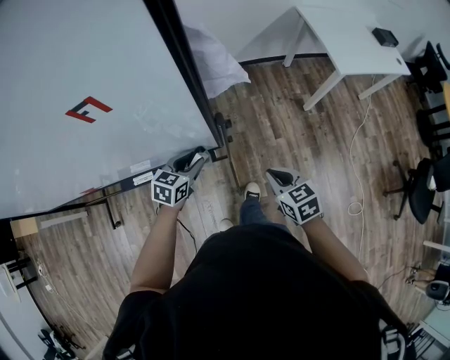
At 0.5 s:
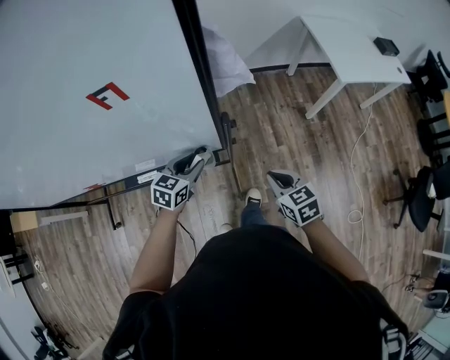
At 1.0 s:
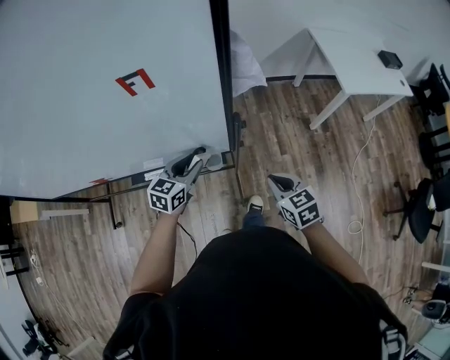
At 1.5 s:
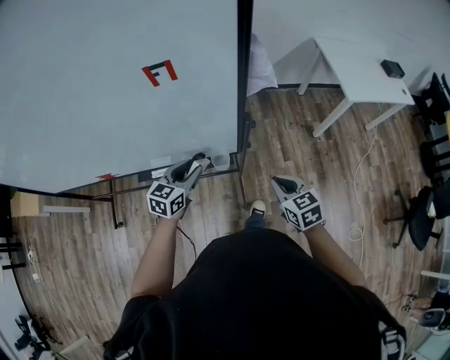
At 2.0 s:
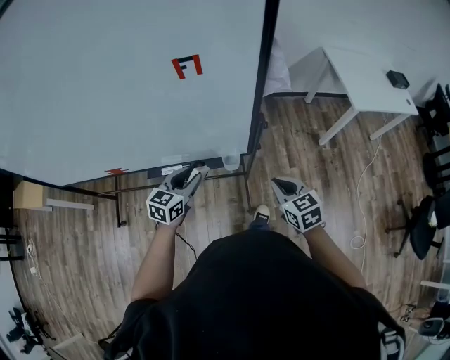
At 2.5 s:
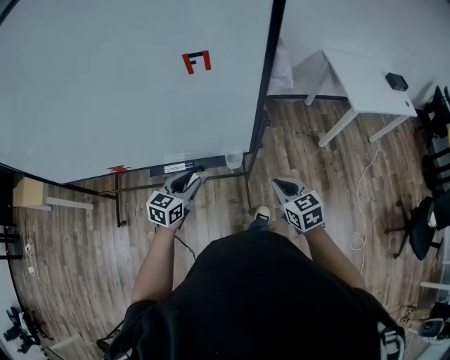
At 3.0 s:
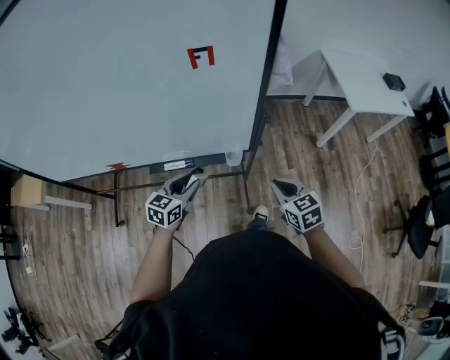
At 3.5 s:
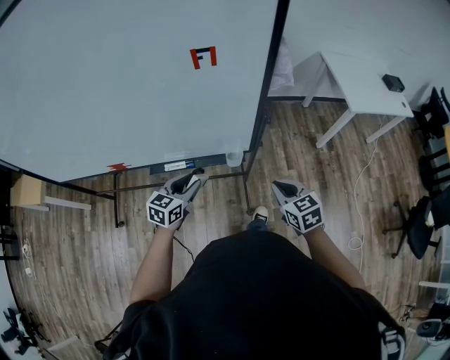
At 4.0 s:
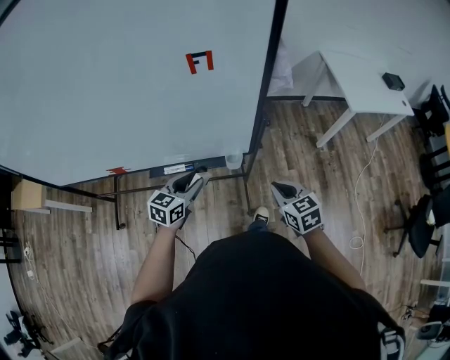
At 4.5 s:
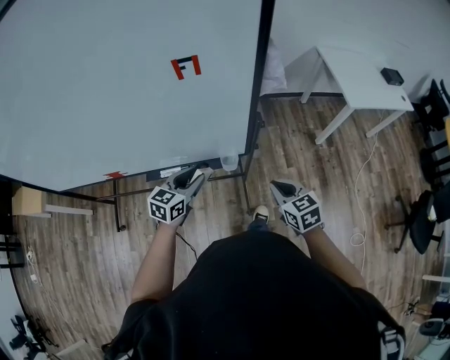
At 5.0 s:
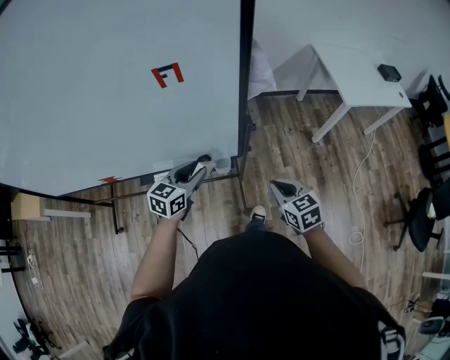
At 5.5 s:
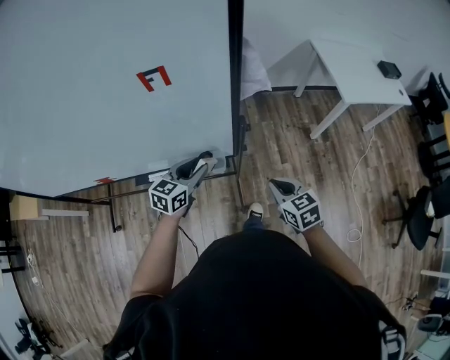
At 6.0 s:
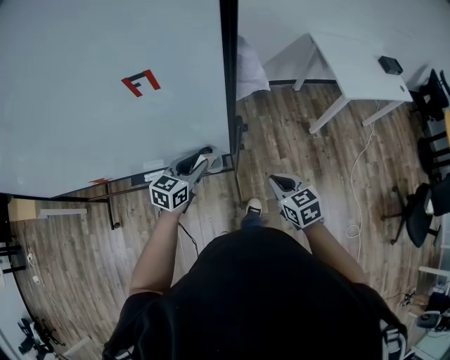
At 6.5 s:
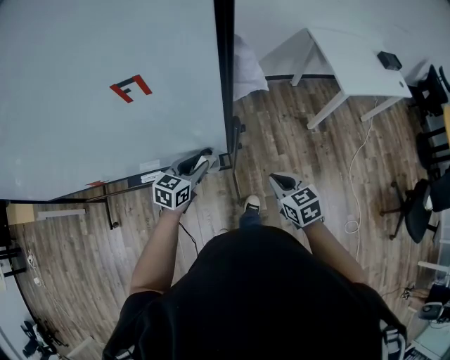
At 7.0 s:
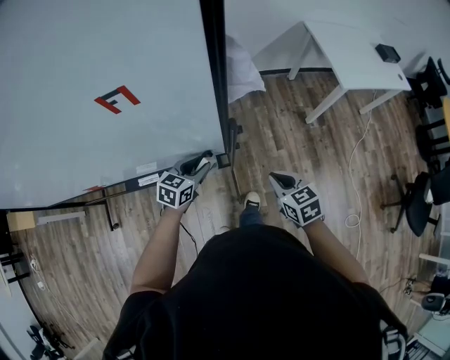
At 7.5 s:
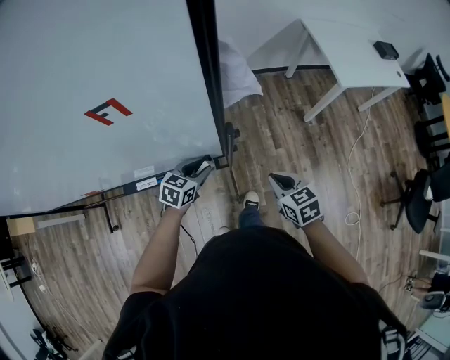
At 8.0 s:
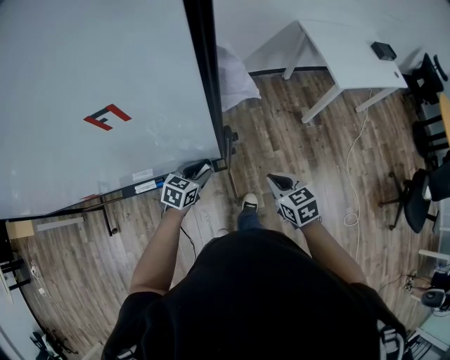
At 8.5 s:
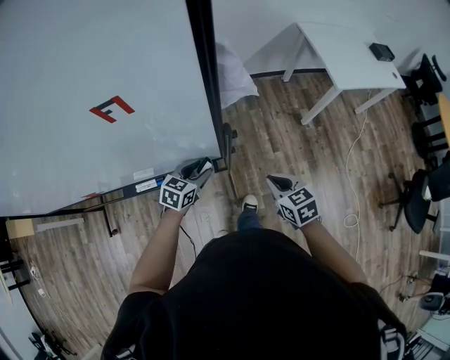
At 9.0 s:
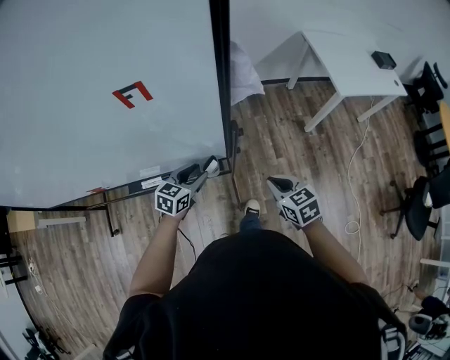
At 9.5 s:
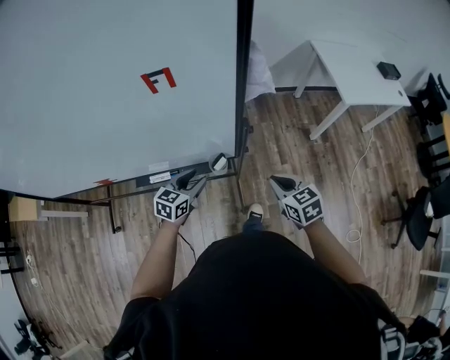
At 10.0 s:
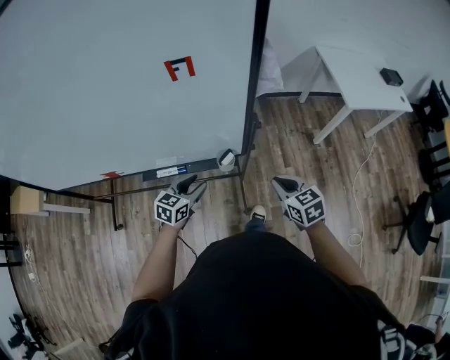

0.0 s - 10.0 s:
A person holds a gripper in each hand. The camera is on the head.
0.0 s - 2.0 s: The right gripper goes some 10 cm to the left and upward. Meanwhile the left gripper travels to the left, backward and upward by about 15 cm.
2.0 s - 4.0 s: The grippers stay close to where they were, moving slightly.
4.0 s - 6.0 s: The left gripper goes about 15 cm forward and to the right. Meanwhile the right gripper travels to the right and forward by some 10 cm.
6.0 s - 8.0 s: The left gripper shifts some 10 cm downward.
8.0 s - 10.0 s: The left gripper heads backward, to the left and upward, covering some 15 cm; the right gripper heads backward, covering about 5 cm.

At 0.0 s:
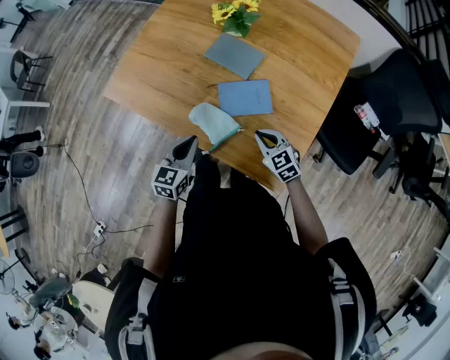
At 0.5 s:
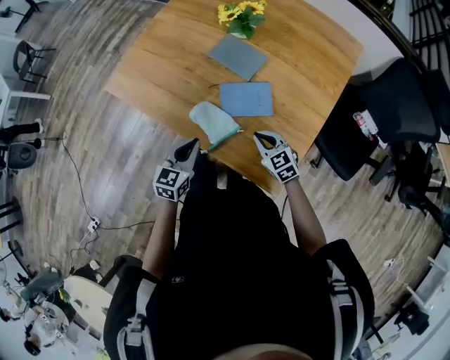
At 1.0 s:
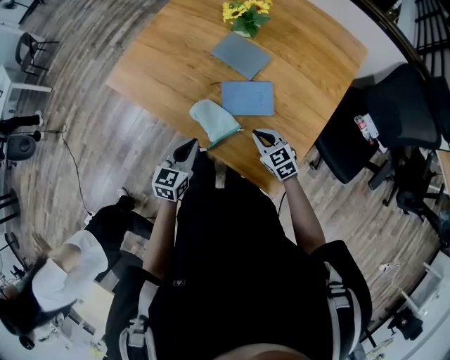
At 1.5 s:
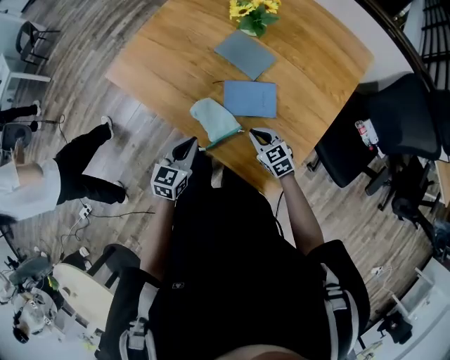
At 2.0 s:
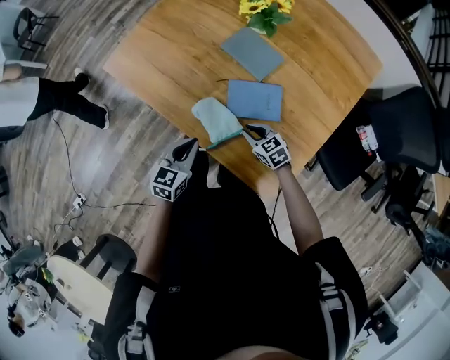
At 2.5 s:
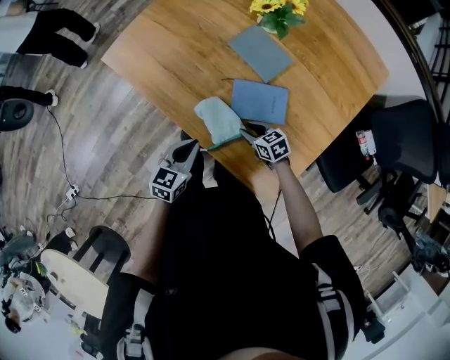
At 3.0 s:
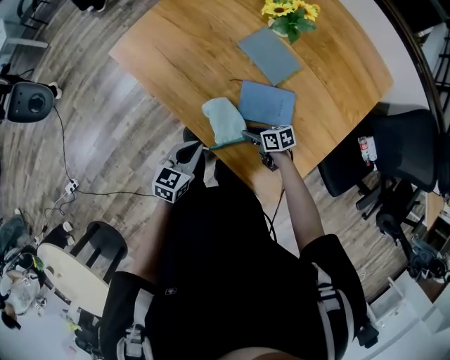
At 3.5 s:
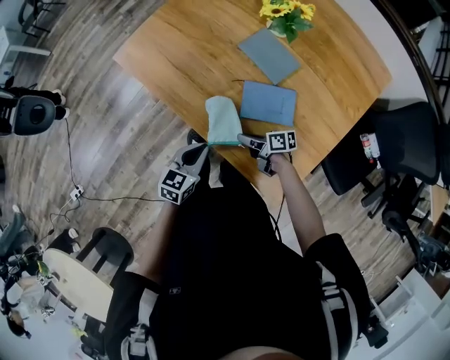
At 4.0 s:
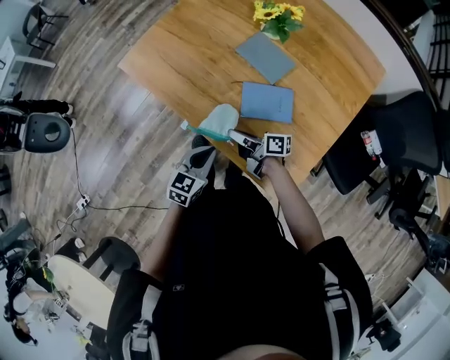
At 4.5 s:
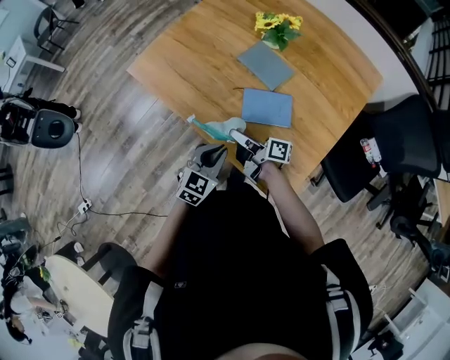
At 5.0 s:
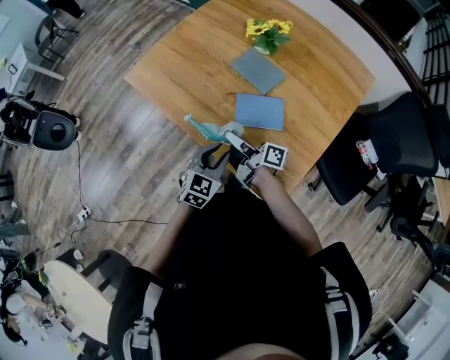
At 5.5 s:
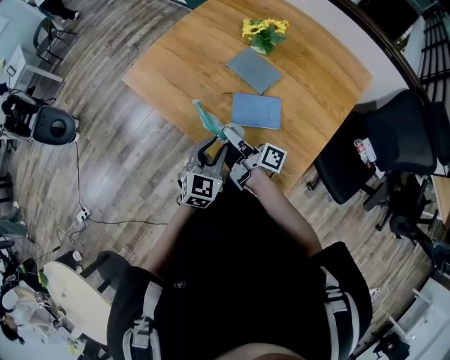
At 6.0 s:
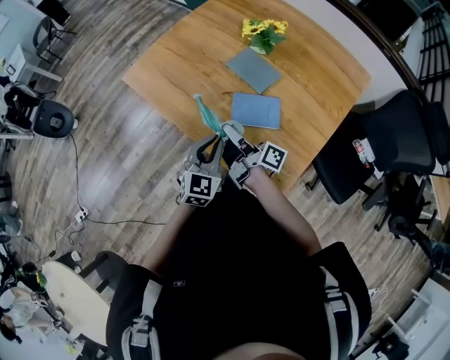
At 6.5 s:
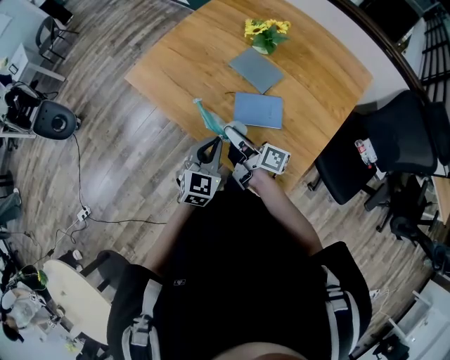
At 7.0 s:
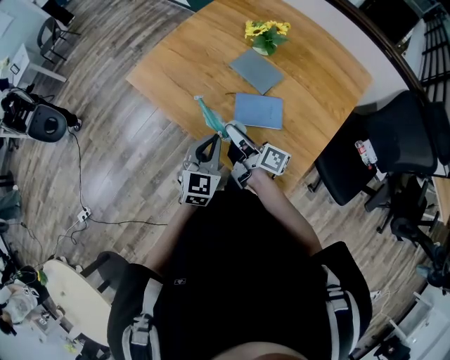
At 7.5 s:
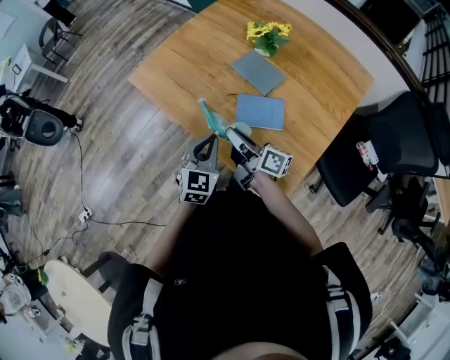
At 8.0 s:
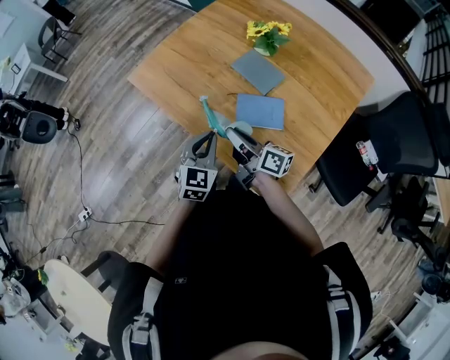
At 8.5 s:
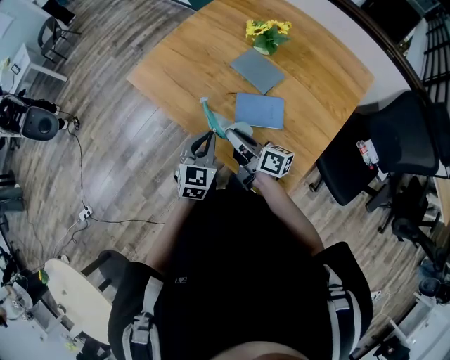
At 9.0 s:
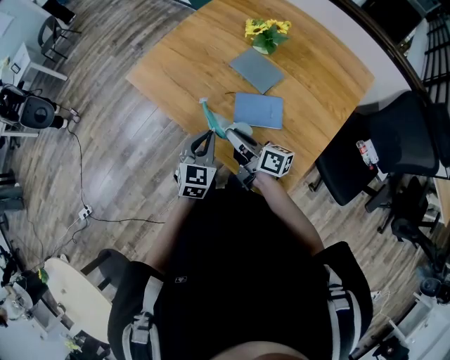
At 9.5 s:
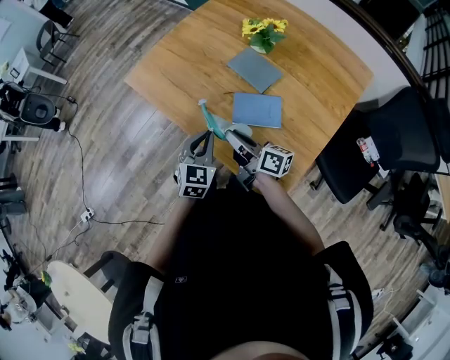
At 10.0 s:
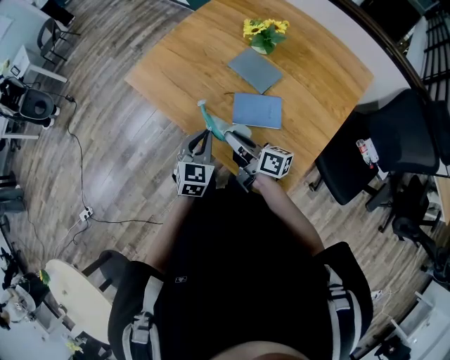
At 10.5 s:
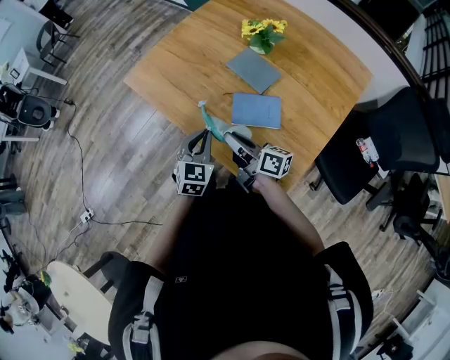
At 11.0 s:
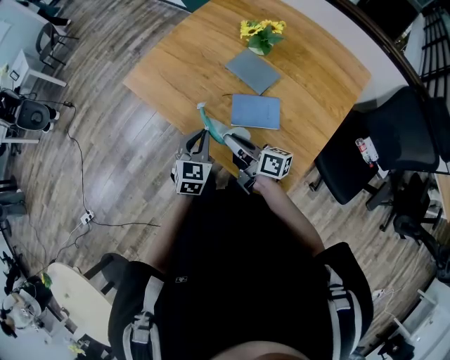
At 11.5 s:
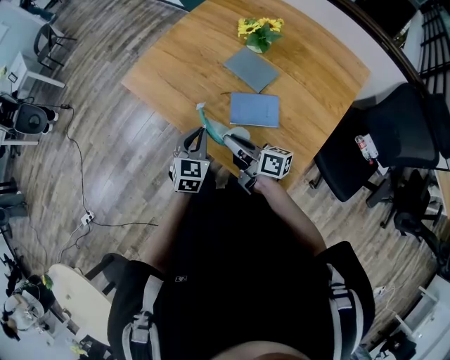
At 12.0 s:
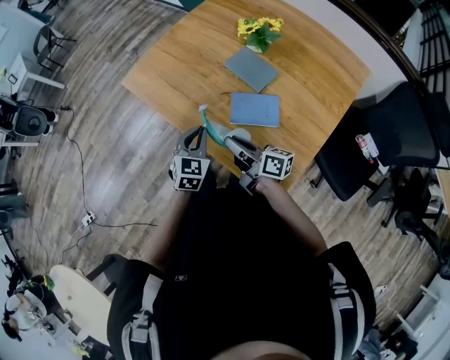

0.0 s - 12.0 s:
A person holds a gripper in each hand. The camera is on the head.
0.0 s - 2.0 s: The right gripper shifts some 5 cm downward.
2.0 s - 4.0 s: The right gripper is displaced to the left and upward by some 15 cm, and twists some 50 degrees clockwise, seen from behind.
4.0 s - 6.0 s: The right gripper moves upward, about 15 cm, and changes its angle by approximately 30 degrees; the left gripper goes roughly 10 cm upward and to the right, turns by about 20 degrees, and opens, then closes once more.
6.0 s - 8.0 s: The right gripper rotates some 20 degrees.
8.0 s - 12.0 s: The grippers move only a little.

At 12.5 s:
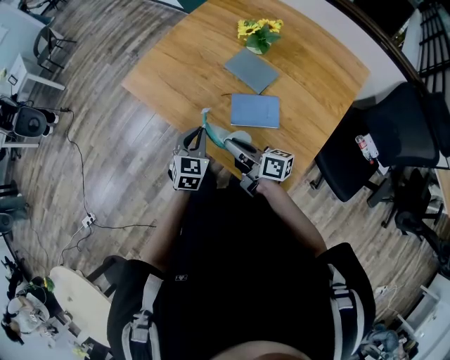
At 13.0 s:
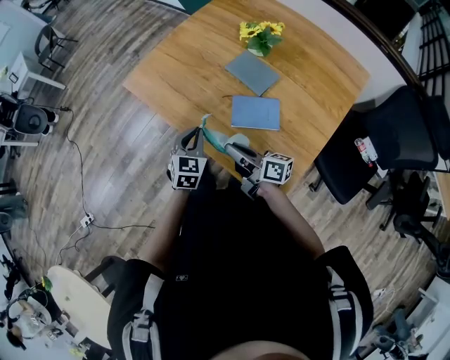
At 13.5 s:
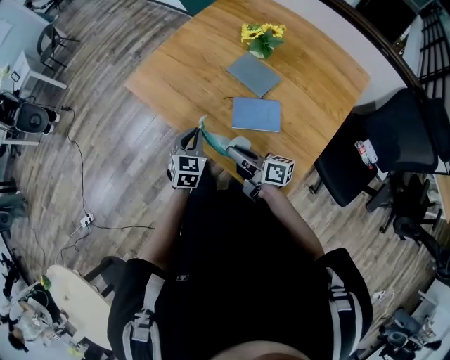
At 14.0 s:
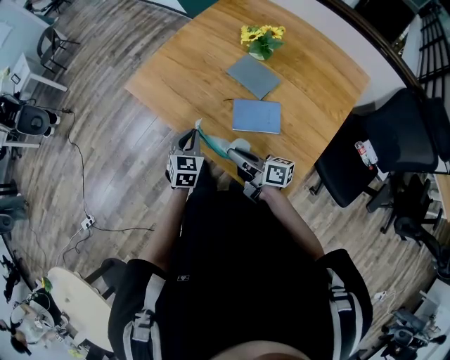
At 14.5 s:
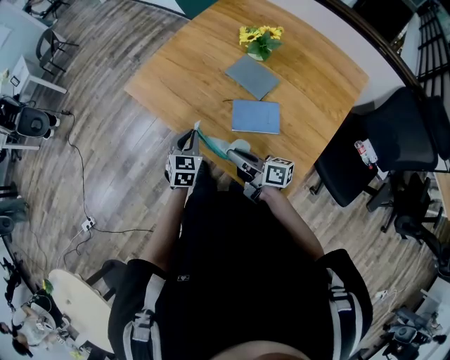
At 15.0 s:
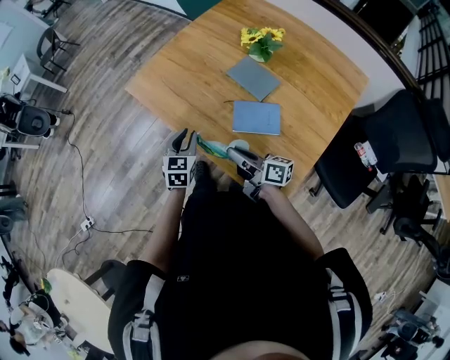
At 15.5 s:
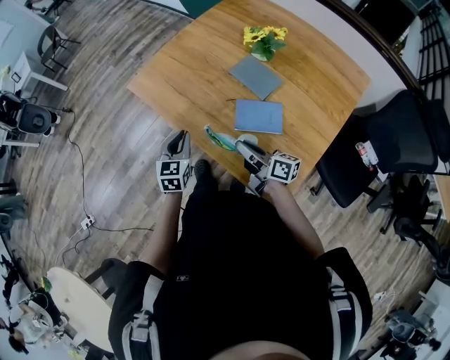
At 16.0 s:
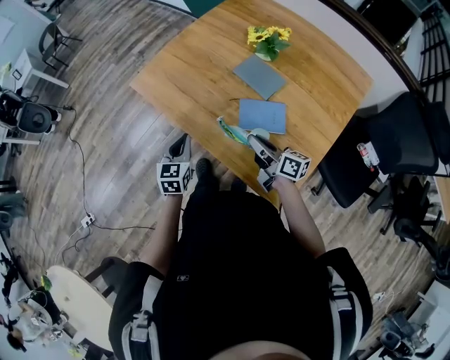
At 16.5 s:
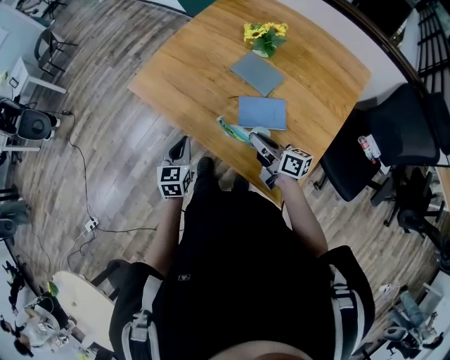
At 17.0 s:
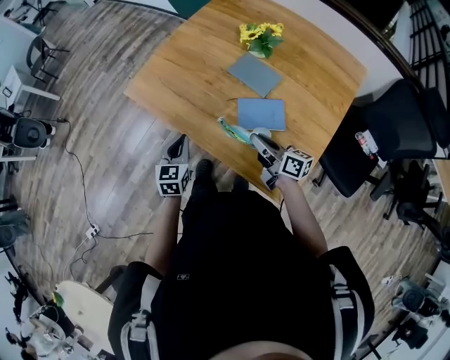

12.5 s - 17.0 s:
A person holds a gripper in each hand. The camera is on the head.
12.5 s - 14.5 s: There are only small adjustments of the grippers.
14.5 s - 17.0 s: The right gripper moves to the right, about 5 cm. Meanwhile the left gripper goes about 5 cm to the left.
